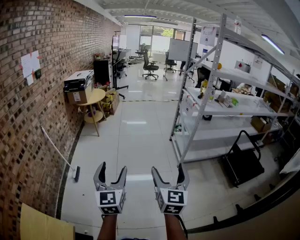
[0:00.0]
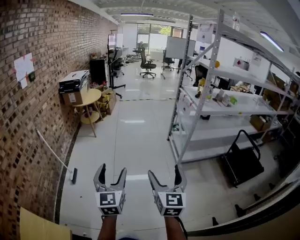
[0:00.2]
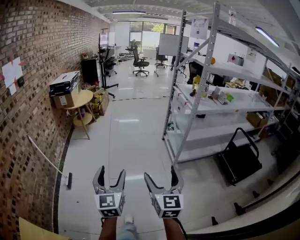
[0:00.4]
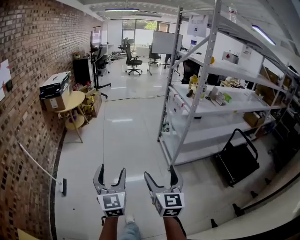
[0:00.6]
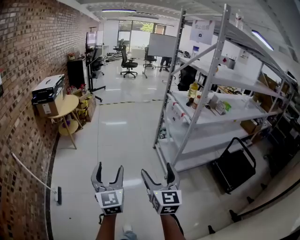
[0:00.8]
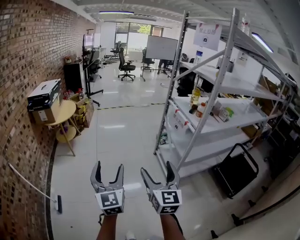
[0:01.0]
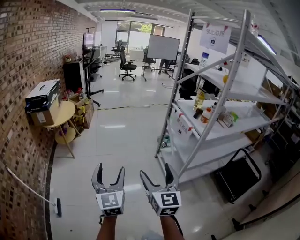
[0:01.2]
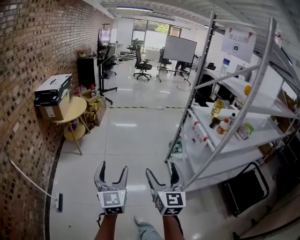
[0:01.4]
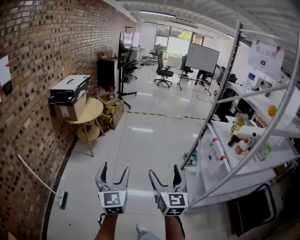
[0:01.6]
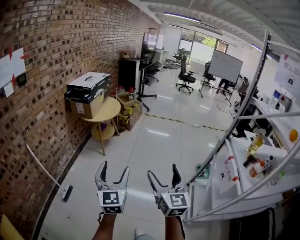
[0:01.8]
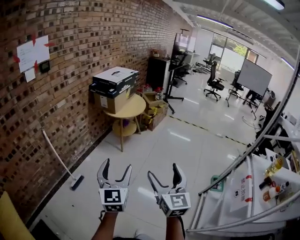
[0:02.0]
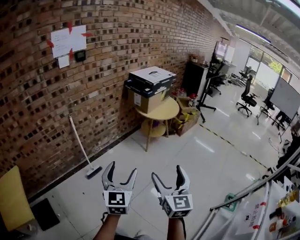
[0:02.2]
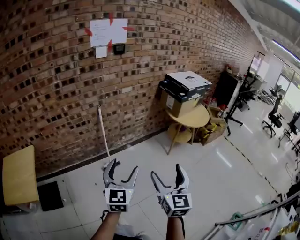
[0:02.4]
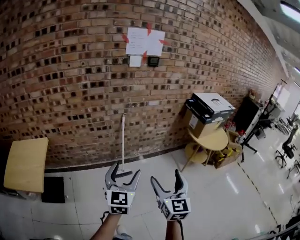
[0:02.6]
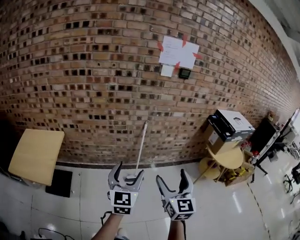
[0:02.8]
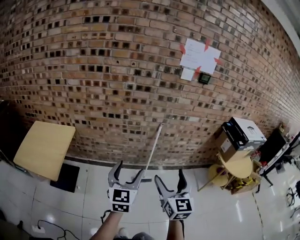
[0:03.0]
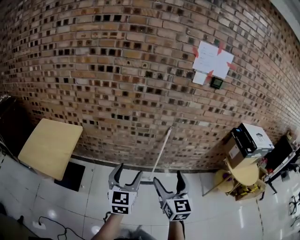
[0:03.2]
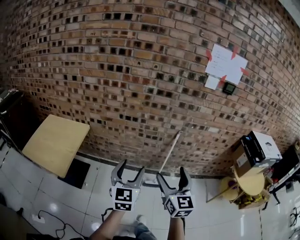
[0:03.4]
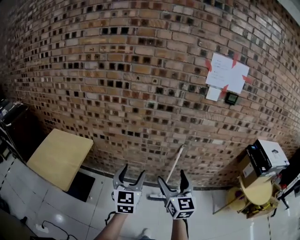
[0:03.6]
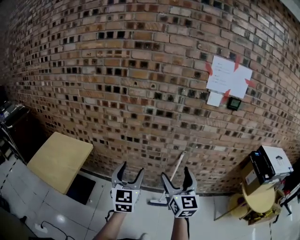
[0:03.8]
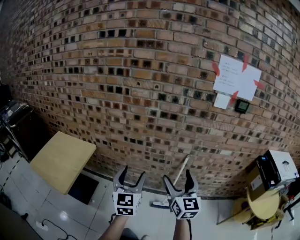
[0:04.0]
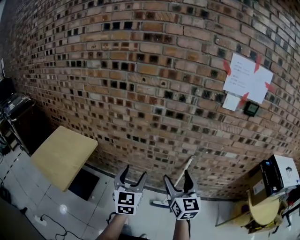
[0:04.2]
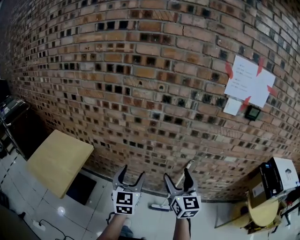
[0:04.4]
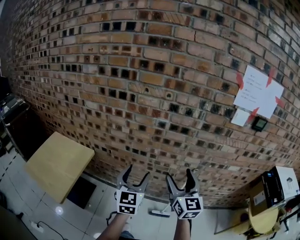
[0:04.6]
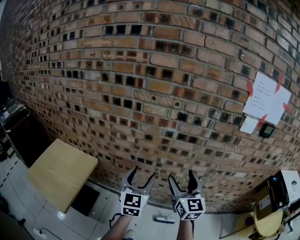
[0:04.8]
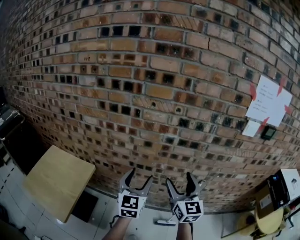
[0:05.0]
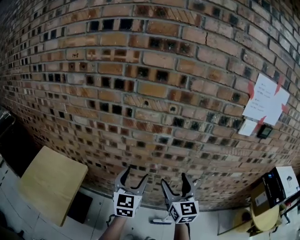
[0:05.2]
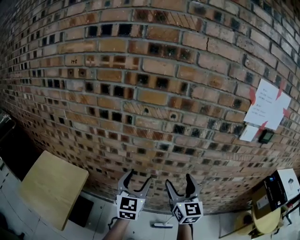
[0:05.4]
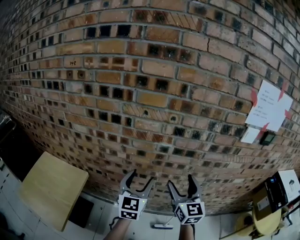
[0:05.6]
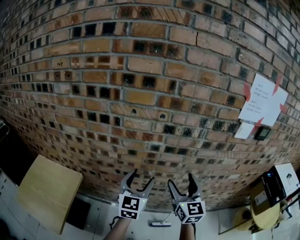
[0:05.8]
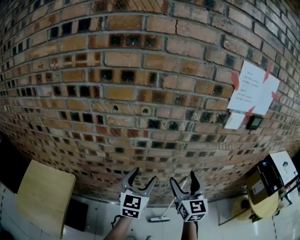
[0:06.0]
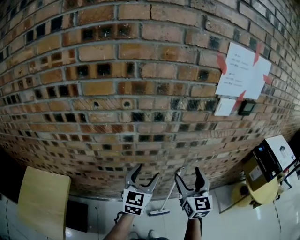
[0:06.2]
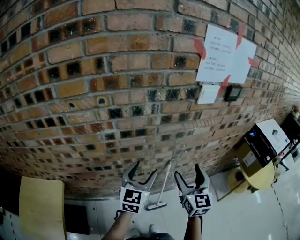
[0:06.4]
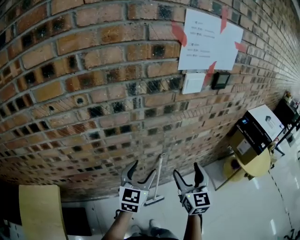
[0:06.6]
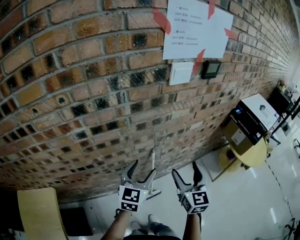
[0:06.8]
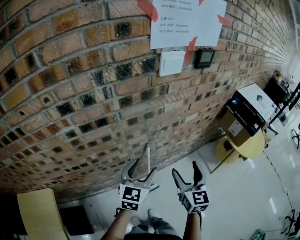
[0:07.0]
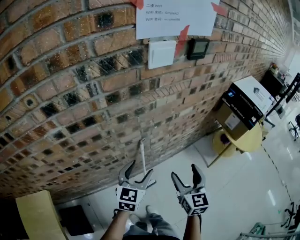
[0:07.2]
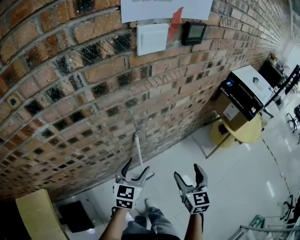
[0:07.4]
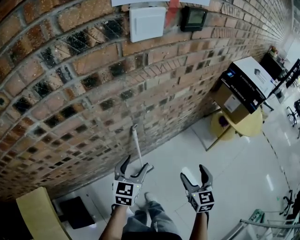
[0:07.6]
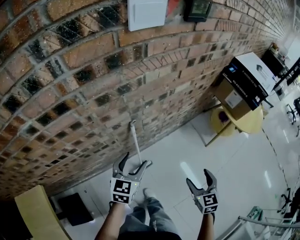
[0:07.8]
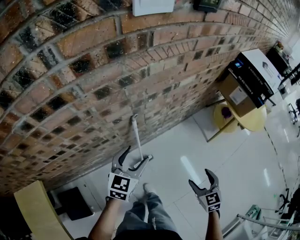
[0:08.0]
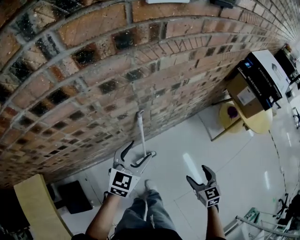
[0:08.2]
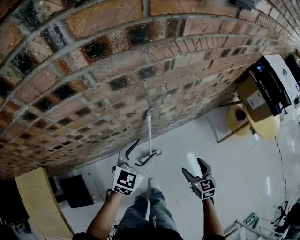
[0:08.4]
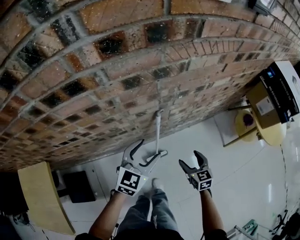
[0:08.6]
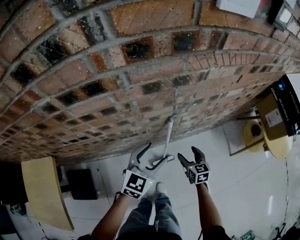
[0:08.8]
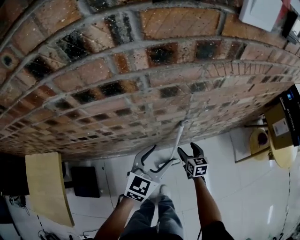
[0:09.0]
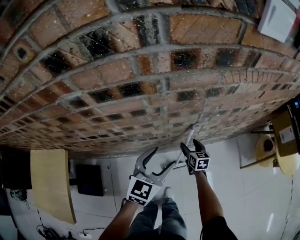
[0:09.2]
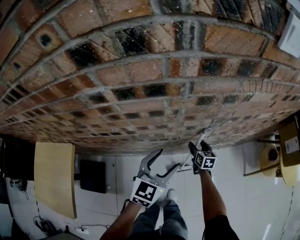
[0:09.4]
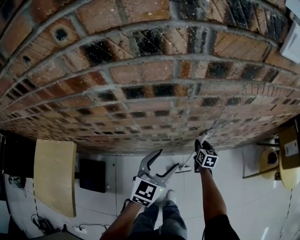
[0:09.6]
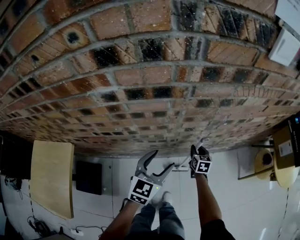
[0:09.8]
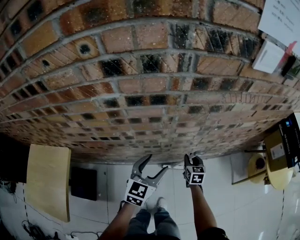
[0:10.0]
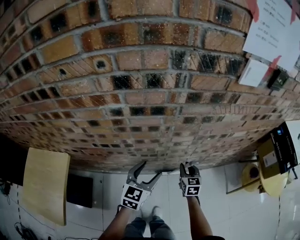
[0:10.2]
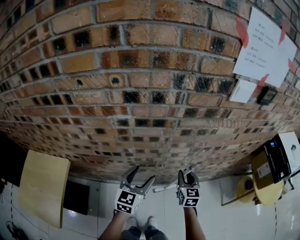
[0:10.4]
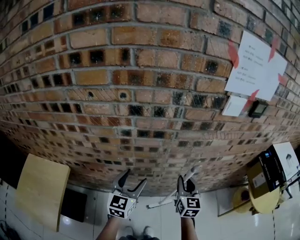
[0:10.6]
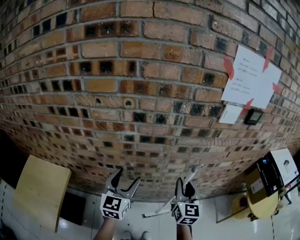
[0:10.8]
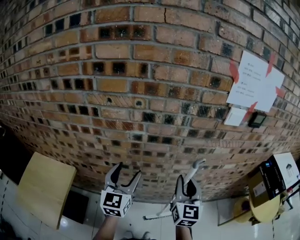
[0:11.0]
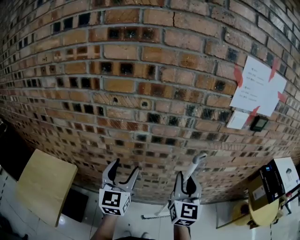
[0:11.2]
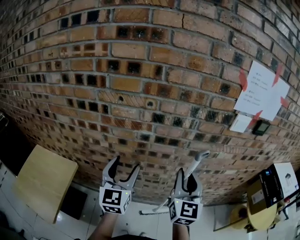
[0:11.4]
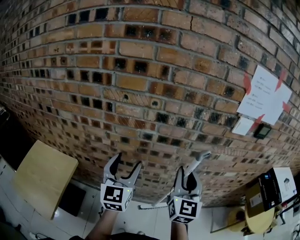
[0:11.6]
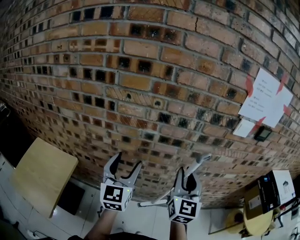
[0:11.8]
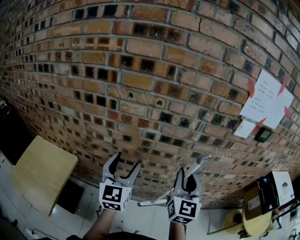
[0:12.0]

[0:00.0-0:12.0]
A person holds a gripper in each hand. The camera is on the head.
0:00.0 to 0:01.6: Both grippers are carried forward, approximately 60 cm.
0:01.6 to 0:03.0: The two grippers travel together, roughly 50 cm. The left gripper turns by some 70 degrees. The right gripper rotates roughly 90 degrees.
0:03.0 to 0:04.4: Both grippers move forward, approximately 30 cm.
0:04.4 to 0:06.0: Both grippers travel together forward, some 20 cm. The left gripper changes its angle by approximately 20 degrees.
0:06.0 to 0:07.6: The left gripper moves approximately 35 cm, and turns by about 40 degrees, while the right gripper changes place by about 40 cm, and turns by about 40 degrees.
0:07.6 to 0:09.0: The left gripper travels to the left by approximately 5 cm. Meanwhile the right gripper heads downward, to the left and forward, covering approximately 35 cm, and changes its angle by some 30 degrees.
0:09.0 to 0:10.4: The left gripper moves to the left and upward, approximately 15 cm, and swivels some 20 degrees. Meanwhile the right gripper is displaced upward by about 25 cm, turns by about 20 degrees, and closes.
0:10.4 to 0:12.0: The right gripper moves upward, some 30 cm, and changes its angle by about 30 degrees; the left gripper heads upward and to the left, covering approximately 25 cm, and rotates about 30 degrees.

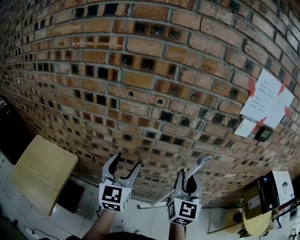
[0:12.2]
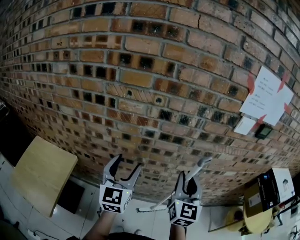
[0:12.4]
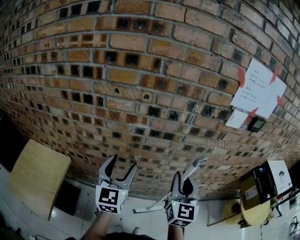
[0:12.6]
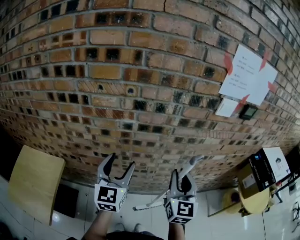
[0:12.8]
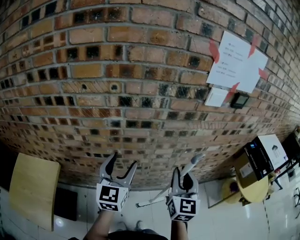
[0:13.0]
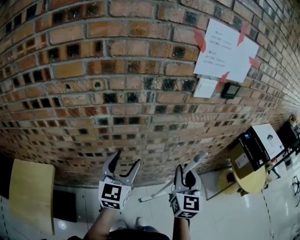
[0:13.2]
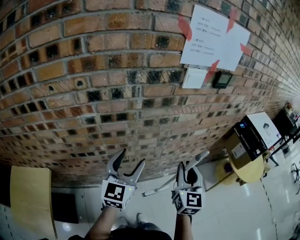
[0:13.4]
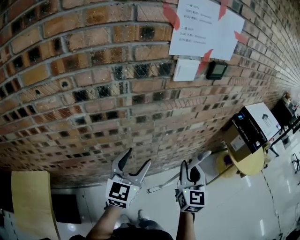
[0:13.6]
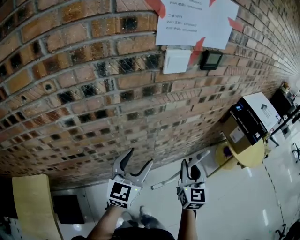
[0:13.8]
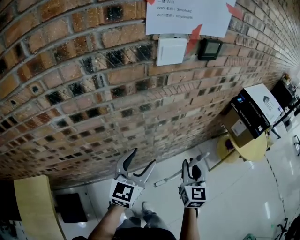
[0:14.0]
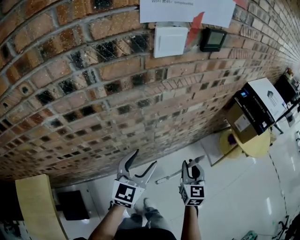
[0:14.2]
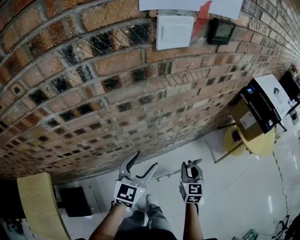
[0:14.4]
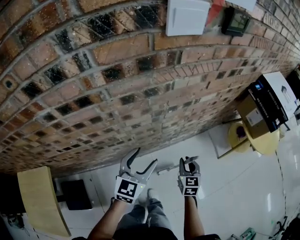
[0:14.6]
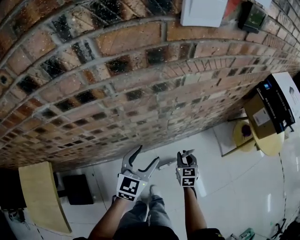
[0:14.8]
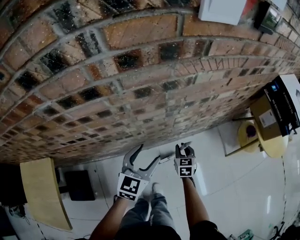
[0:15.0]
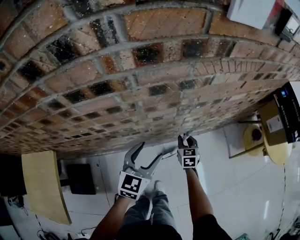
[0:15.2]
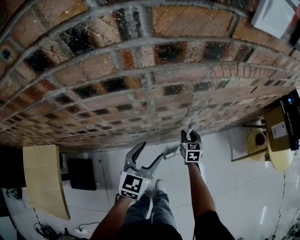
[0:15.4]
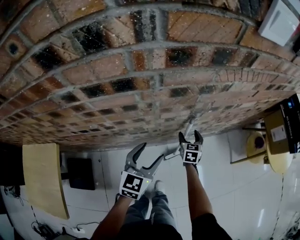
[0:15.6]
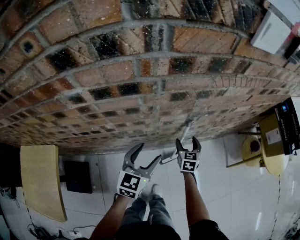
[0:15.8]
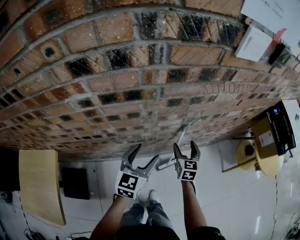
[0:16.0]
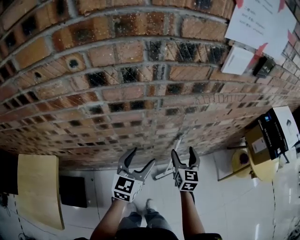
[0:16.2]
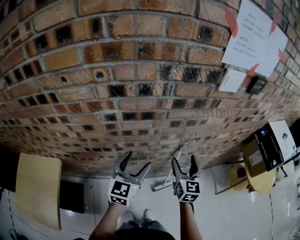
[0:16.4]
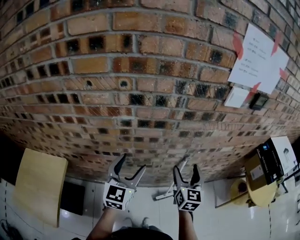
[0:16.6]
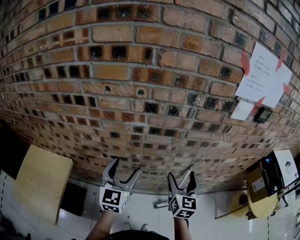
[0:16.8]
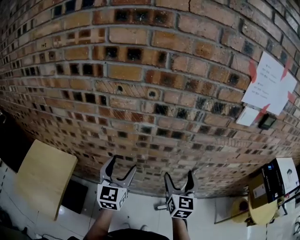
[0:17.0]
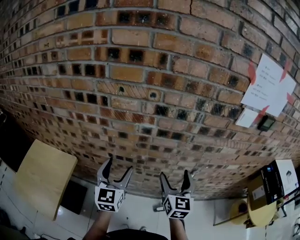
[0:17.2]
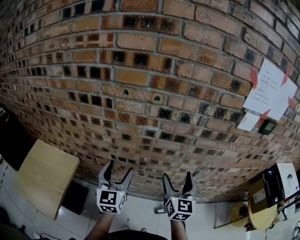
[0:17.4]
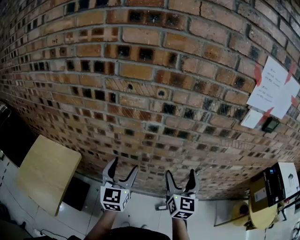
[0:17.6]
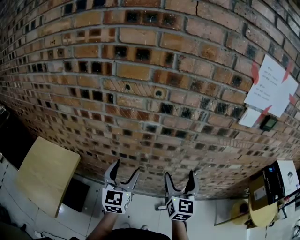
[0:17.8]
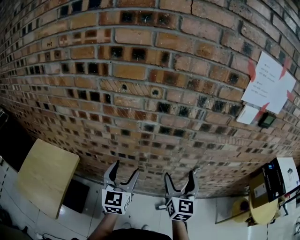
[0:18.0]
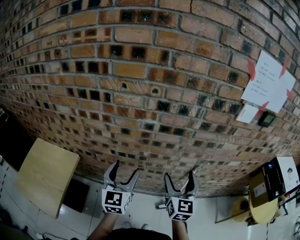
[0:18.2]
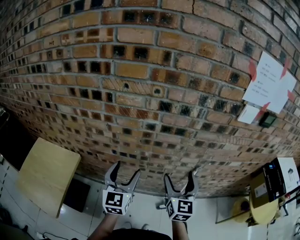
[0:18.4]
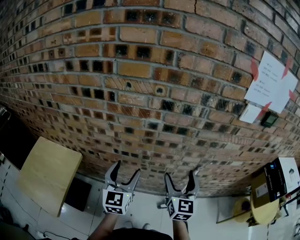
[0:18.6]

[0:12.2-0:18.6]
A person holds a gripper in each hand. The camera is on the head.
0:12.2 to 0:13.8: The left gripper moves roughly 30 cm, and turns by about 40 degrees. Meanwhile the right gripper changes place by some 30 cm, and swivels some 20 degrees.
0:13.8 to 0:15.4: The left gripper moves downward, some 20 cm, while the right gripper shifts some 40 cm downward and forward, and turns by about 30 degrees.
0:15.4 to 0:17.0: The left gripper shifts some 35 cm upward, to the left and backward, and changes its angle by roughly 40 degrees; the right gripper moves upward and backward, approximately 40 cm, angles its fingers upward, by roughly 30 degrees, and opens up.
0:17.0 to 0:18.6: The grippers stay close to where they were, moving slightly.

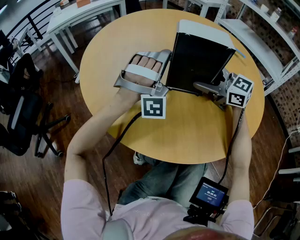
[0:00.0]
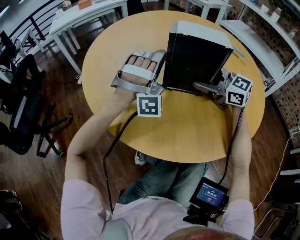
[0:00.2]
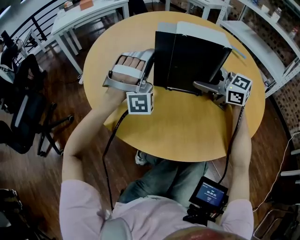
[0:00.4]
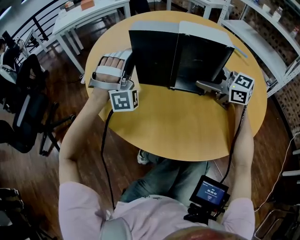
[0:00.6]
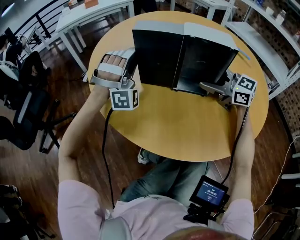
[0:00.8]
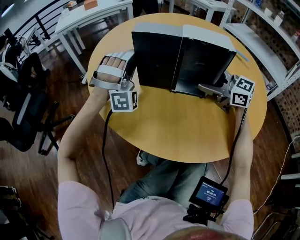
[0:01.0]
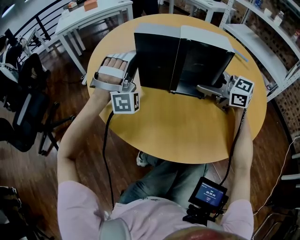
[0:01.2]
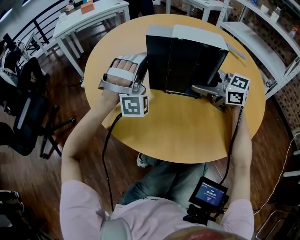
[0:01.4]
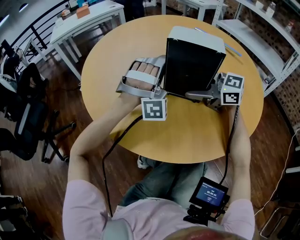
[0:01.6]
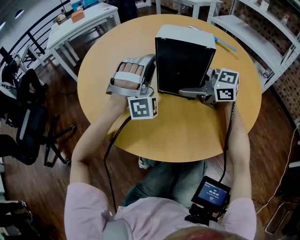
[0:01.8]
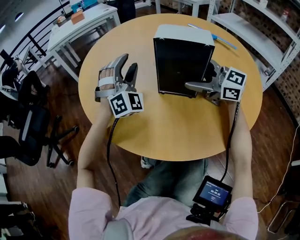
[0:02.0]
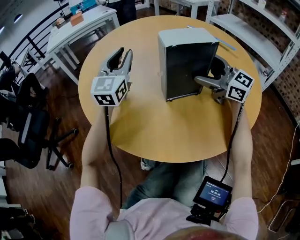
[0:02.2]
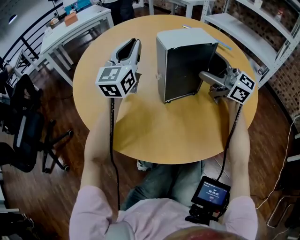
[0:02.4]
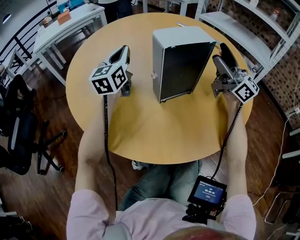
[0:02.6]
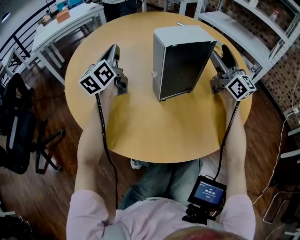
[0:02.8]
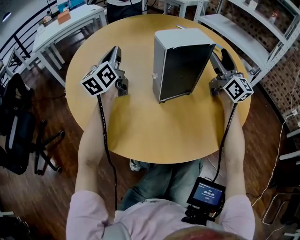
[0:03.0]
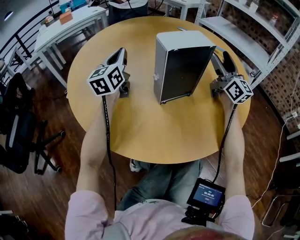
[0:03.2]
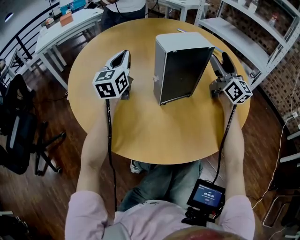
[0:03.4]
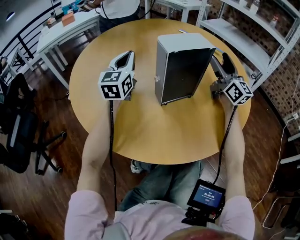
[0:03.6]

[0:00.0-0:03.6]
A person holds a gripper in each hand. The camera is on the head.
0:00.0 to 0:01.8: The left gripper travels to the left and back again, approximately 10 cm each way.
0:01.8 to 0:03.6: The left gripper reaches some 5 cm upward, then returns, rotates around the line of its fingers by about 90 degrees, counterclockwise from behind, and opens, then closes again; the right gripper moves about 20 cm, and rotates approximately 60 degrees.

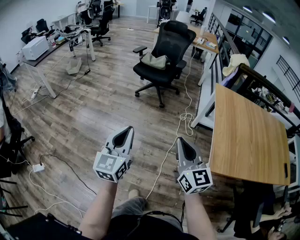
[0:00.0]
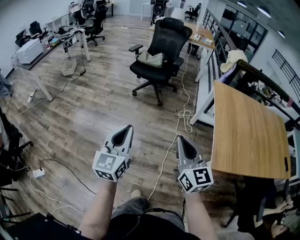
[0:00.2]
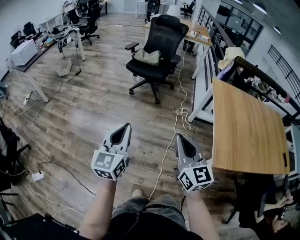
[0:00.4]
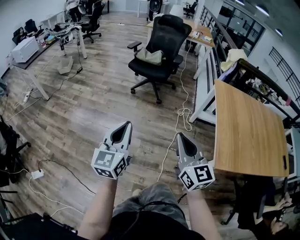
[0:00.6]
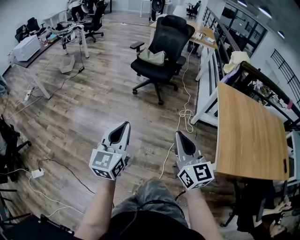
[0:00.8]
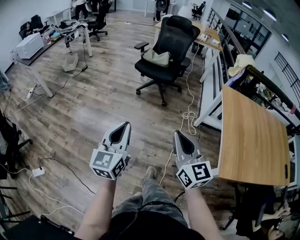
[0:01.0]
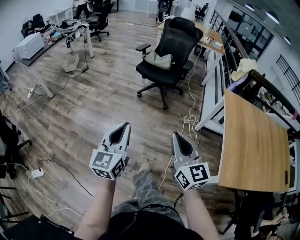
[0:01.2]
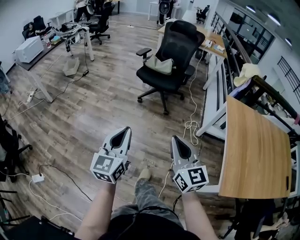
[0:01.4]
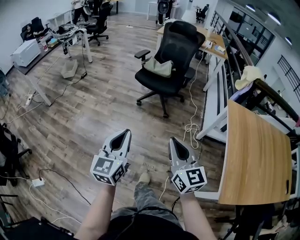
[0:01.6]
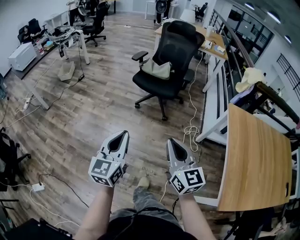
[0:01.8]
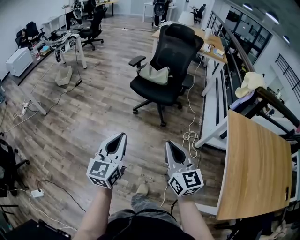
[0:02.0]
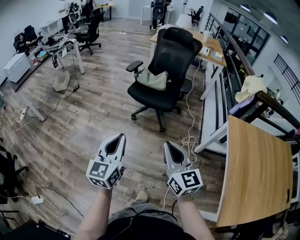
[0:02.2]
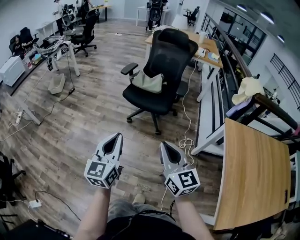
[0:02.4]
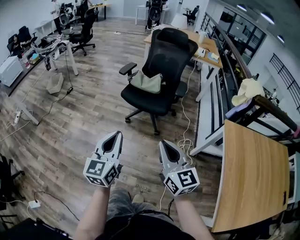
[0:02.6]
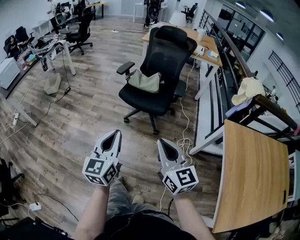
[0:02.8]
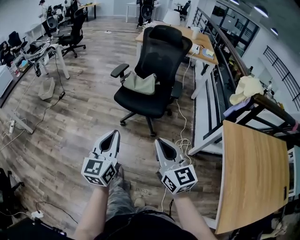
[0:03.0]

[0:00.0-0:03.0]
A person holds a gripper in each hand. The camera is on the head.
0:00.0 to 0:01.6: The grippers both shift forward and to the left by about 20 cm.
0:01.6 to 0:03.0: Both grippers move forward, about 25 cm.
